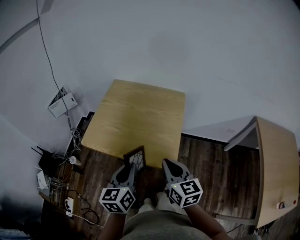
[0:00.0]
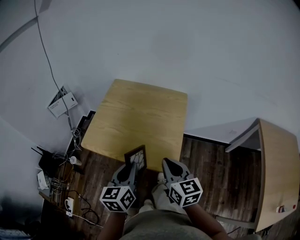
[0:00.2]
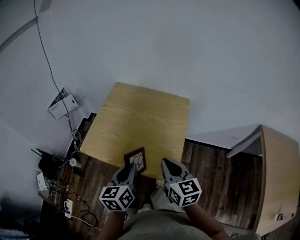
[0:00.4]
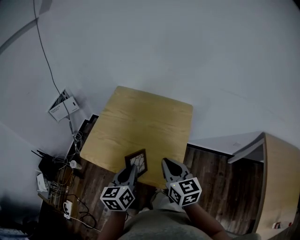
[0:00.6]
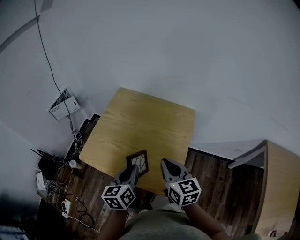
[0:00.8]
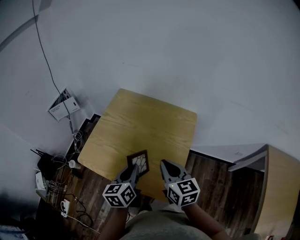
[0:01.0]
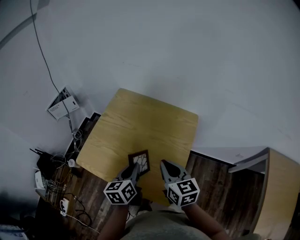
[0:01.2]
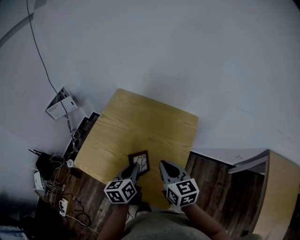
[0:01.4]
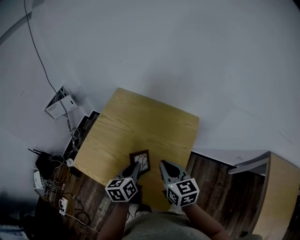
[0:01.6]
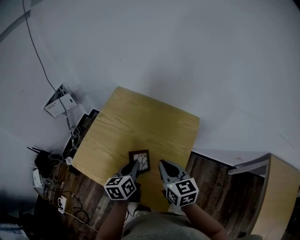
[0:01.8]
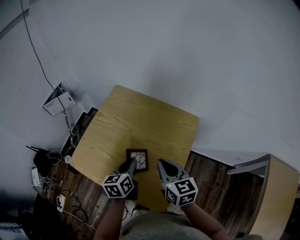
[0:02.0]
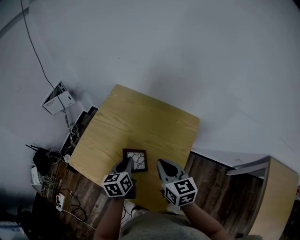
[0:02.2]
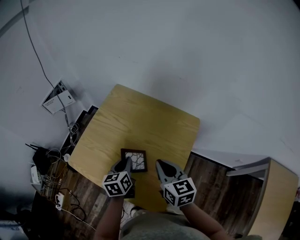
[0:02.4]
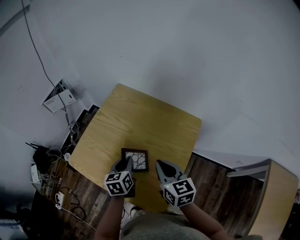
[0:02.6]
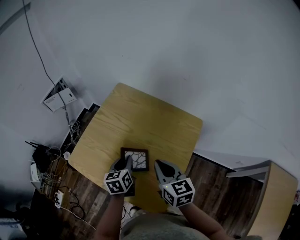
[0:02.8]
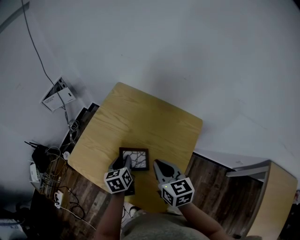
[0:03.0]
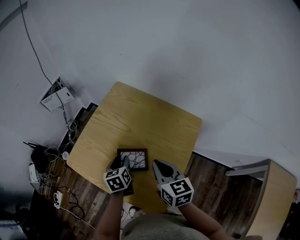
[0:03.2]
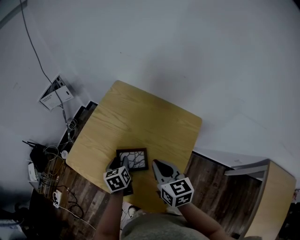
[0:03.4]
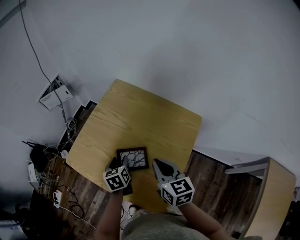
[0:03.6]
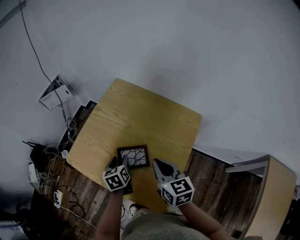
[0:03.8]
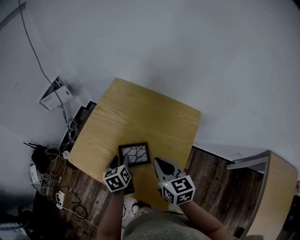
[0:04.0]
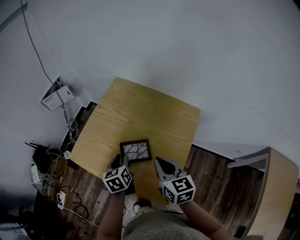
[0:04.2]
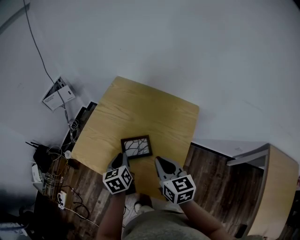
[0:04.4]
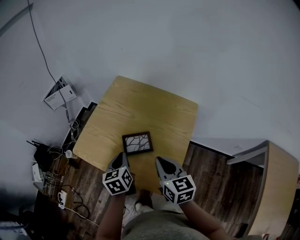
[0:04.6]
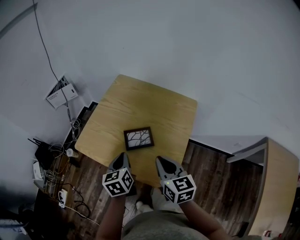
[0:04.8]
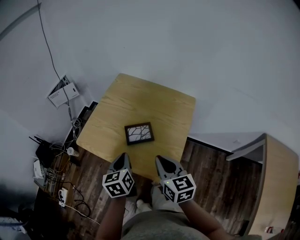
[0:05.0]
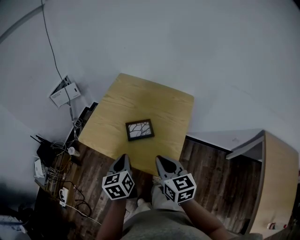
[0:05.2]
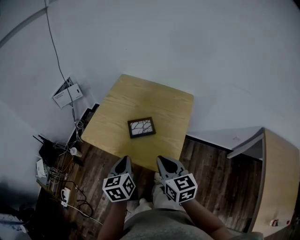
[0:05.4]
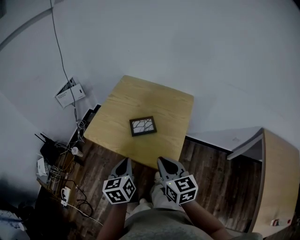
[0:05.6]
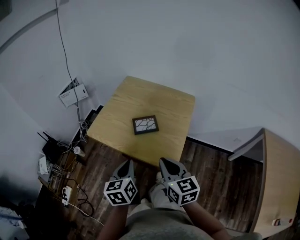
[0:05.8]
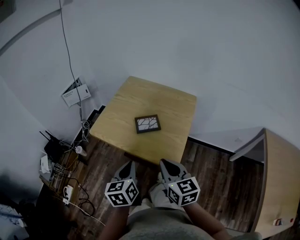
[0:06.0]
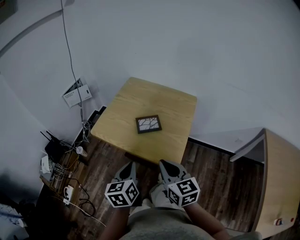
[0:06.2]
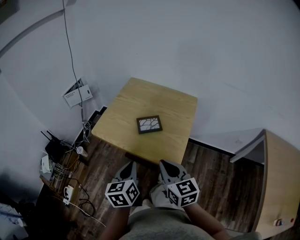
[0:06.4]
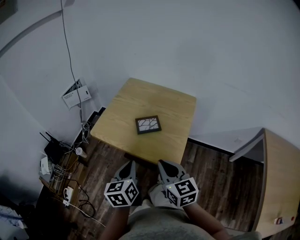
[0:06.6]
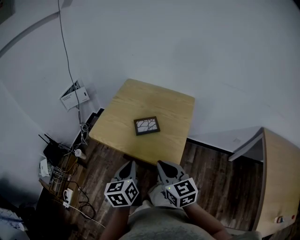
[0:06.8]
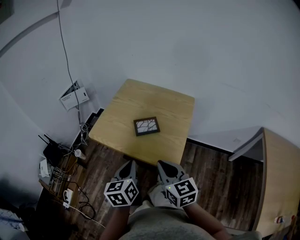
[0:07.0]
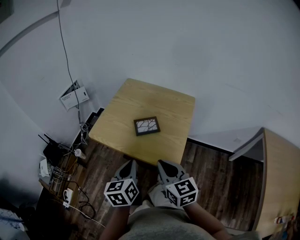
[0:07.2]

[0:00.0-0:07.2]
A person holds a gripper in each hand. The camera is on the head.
0:00.0 to 0:01.4: The left gripper moves forward and downward, some 25 cm, while the right gripper travels forward by roughly 20 cm.
0:01.4 to 0:02.8: The left gripper is displaced forward and downward by some 10 cm. Meanwhile the right gripper shifts by roughly 5 cm.
0:02.8 to 0:04.4: The left gripper shifts by about 5 cm, and opens and closes again. The right gripper goes approximately 5 cm backward.
0:04.4 to 0:05.8: The left gripper is displaced backward and upward by some 25 cm. Meanwhile the right gripper heads backward, covering roughly 20 cm.
0:05.8 to 0:07.2: The grippers stay close to where they were, moving slightly.

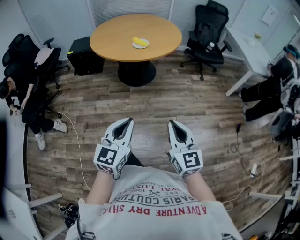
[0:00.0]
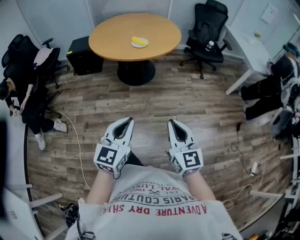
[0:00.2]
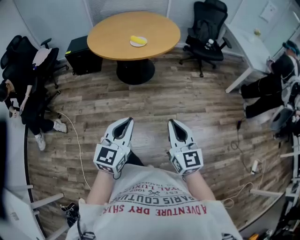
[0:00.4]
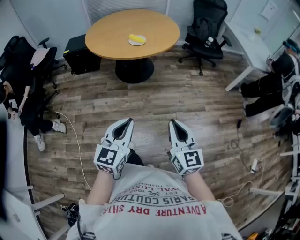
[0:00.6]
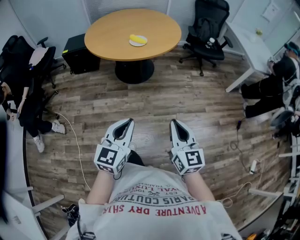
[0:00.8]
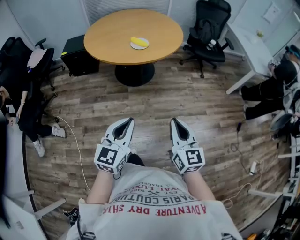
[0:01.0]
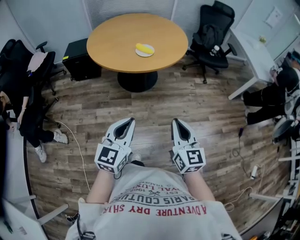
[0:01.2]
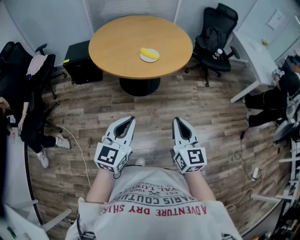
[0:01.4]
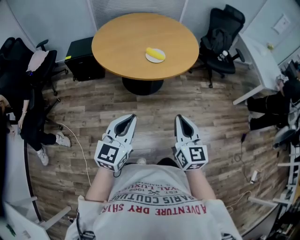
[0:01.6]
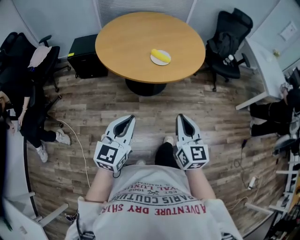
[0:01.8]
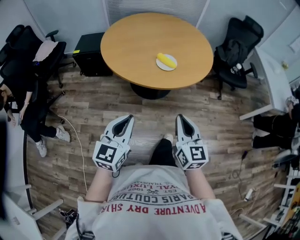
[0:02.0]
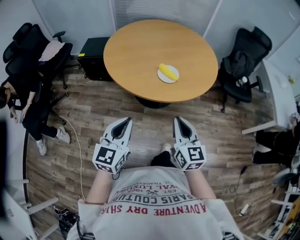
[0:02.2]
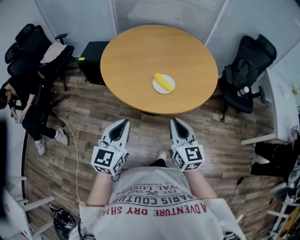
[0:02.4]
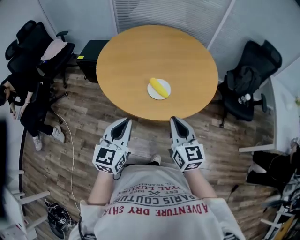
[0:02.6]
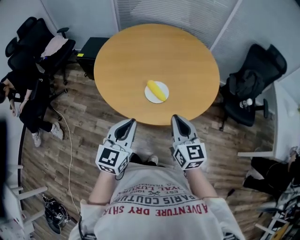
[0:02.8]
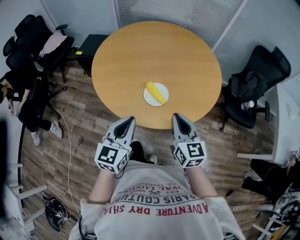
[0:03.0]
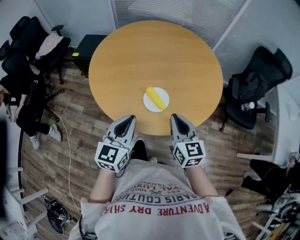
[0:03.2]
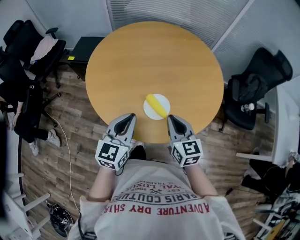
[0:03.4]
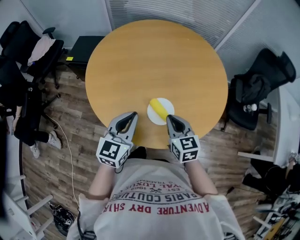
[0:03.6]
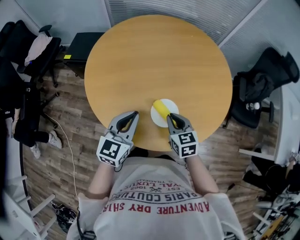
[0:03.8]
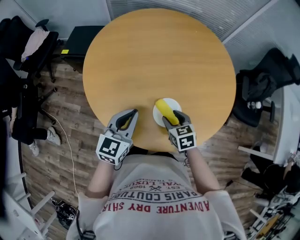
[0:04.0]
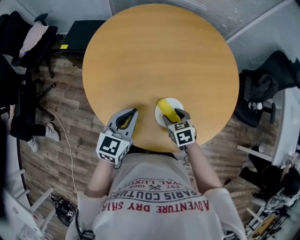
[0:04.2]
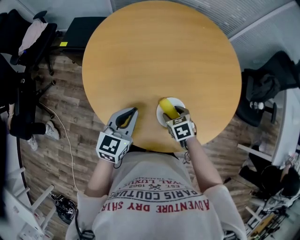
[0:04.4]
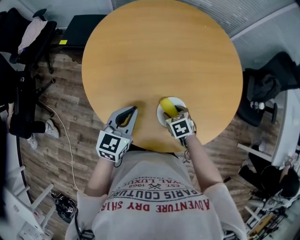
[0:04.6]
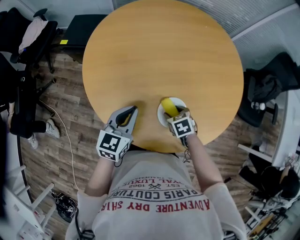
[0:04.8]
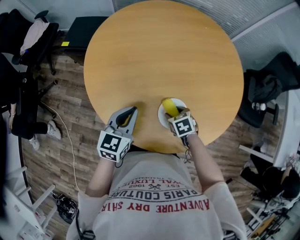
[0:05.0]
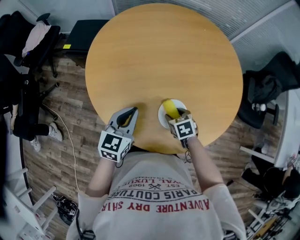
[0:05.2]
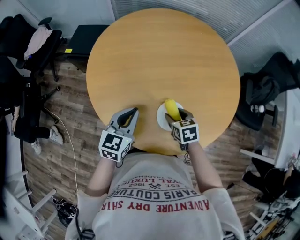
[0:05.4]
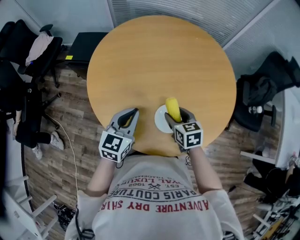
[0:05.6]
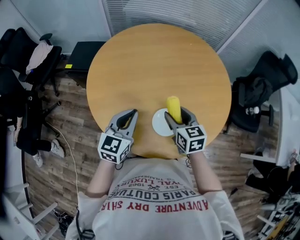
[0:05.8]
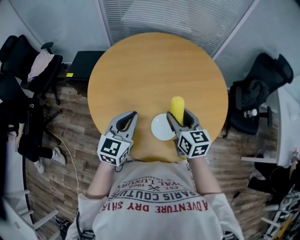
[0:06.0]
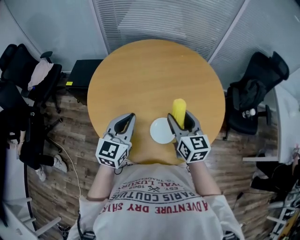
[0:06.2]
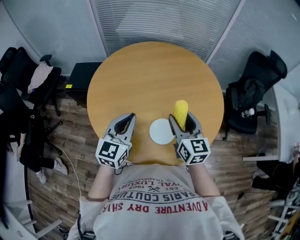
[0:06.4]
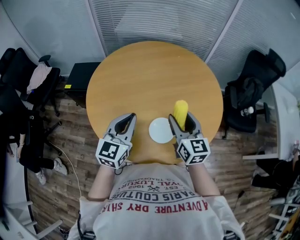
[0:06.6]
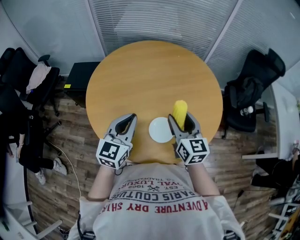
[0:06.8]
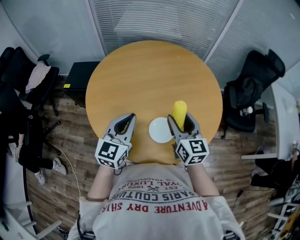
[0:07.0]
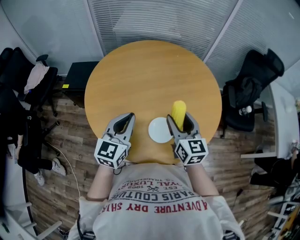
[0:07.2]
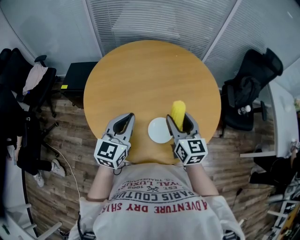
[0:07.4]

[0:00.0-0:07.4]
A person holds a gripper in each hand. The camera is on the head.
0:00.0 to 0:01.4: Both grippers move forward and to the left, some 25 cm.
0:01.4 to 0:03.0: Both grippers move forward, about 40 cm. The left gripper rotates some 30 degrees. Meanwhile the right gripper rotates roughly 30 degrees.
0:03.0 to 0:04.4: The right gripper heads downward and forward, covering about 30 cm, angles its fingers downward, by some 50 degrees, and opens up. The left gripper heads forward and downward, covering about 25 cm.
0:04.4 to 0:06.0: The left gripper goes some 10 cm upward, while the right gripper moves upward, about 20 cm, and tilts its fingers about 40 degrees upward.
0:06.0 to 0:07.4: The grippers stay close to where they were, moving slightly.

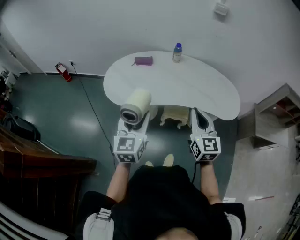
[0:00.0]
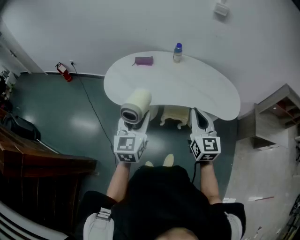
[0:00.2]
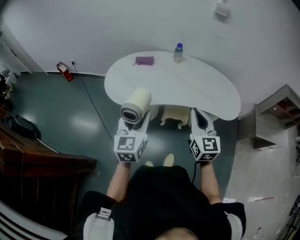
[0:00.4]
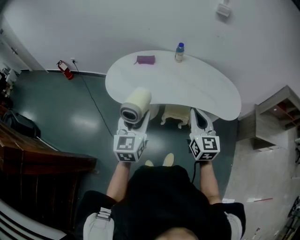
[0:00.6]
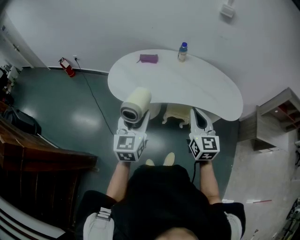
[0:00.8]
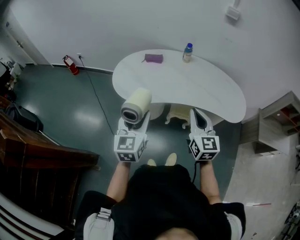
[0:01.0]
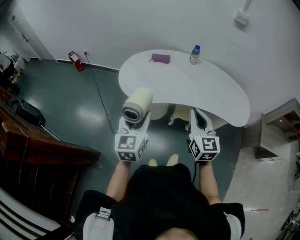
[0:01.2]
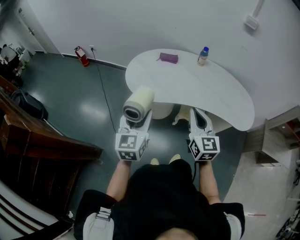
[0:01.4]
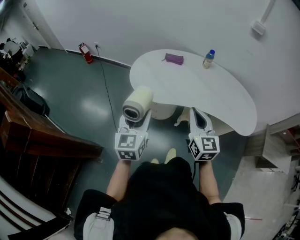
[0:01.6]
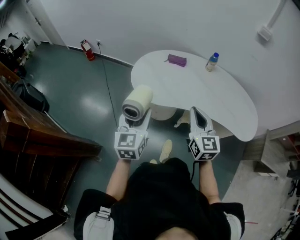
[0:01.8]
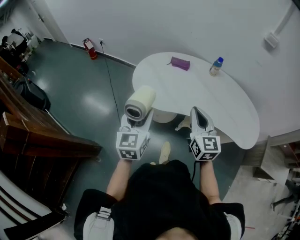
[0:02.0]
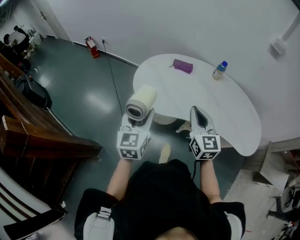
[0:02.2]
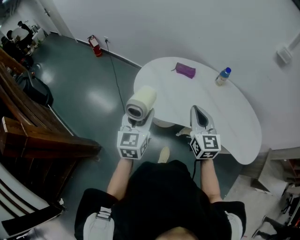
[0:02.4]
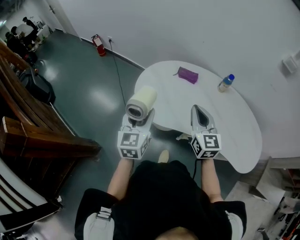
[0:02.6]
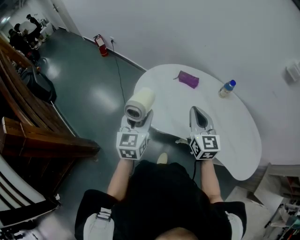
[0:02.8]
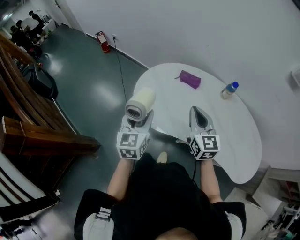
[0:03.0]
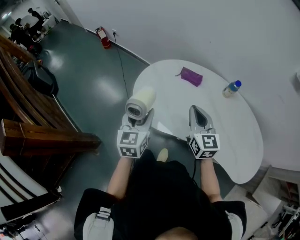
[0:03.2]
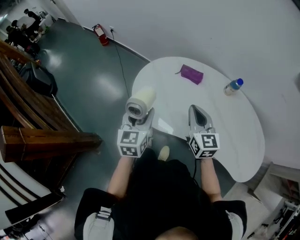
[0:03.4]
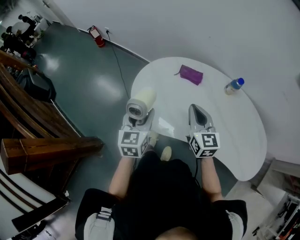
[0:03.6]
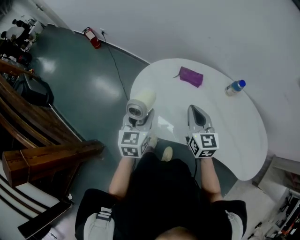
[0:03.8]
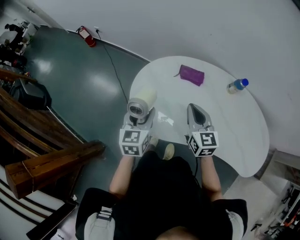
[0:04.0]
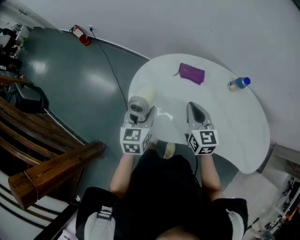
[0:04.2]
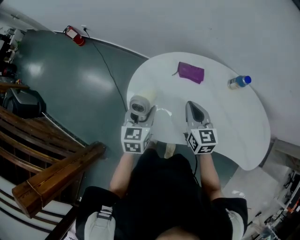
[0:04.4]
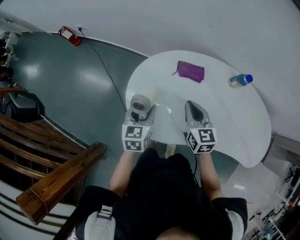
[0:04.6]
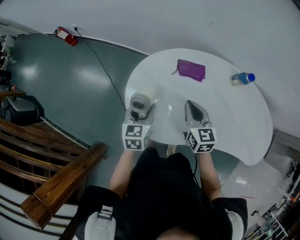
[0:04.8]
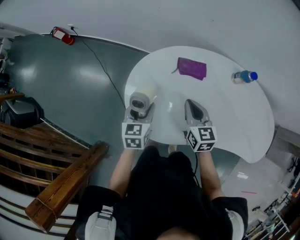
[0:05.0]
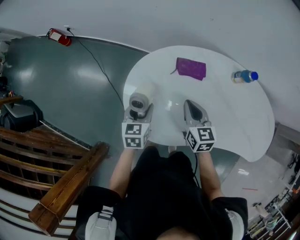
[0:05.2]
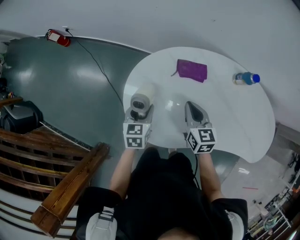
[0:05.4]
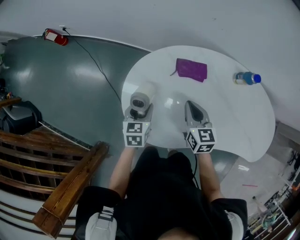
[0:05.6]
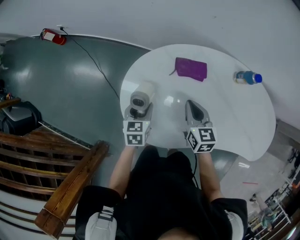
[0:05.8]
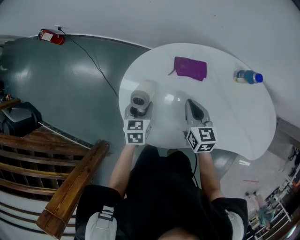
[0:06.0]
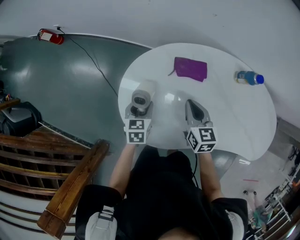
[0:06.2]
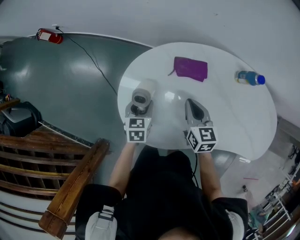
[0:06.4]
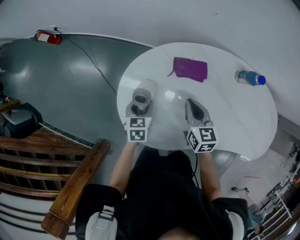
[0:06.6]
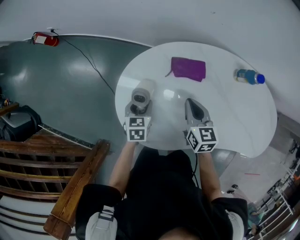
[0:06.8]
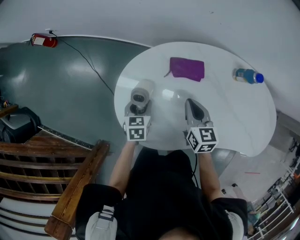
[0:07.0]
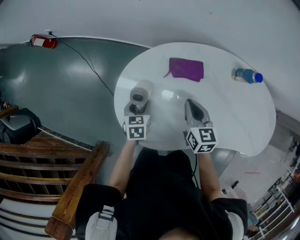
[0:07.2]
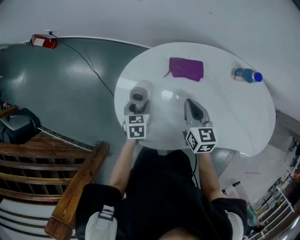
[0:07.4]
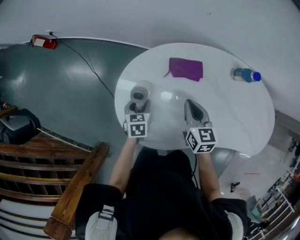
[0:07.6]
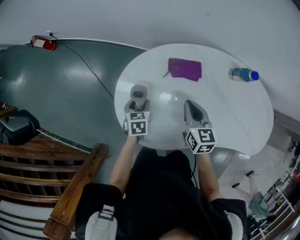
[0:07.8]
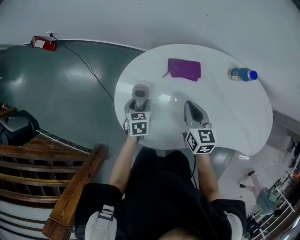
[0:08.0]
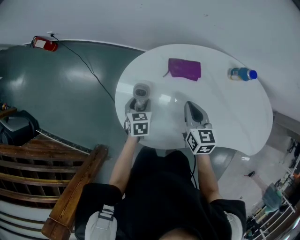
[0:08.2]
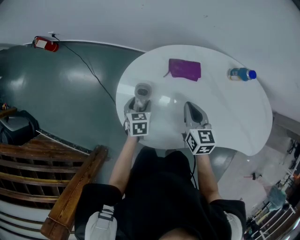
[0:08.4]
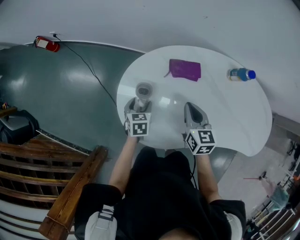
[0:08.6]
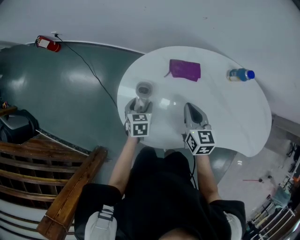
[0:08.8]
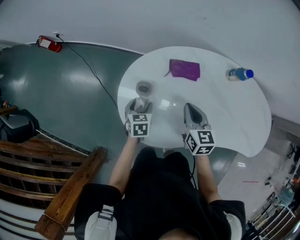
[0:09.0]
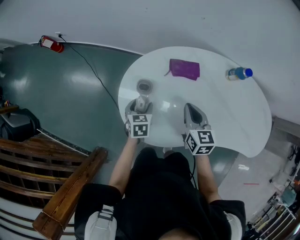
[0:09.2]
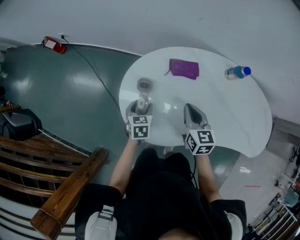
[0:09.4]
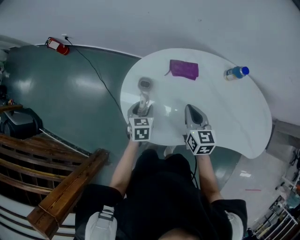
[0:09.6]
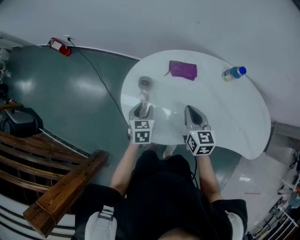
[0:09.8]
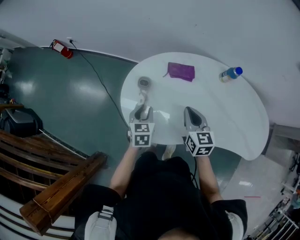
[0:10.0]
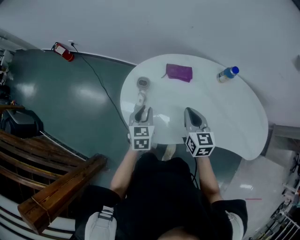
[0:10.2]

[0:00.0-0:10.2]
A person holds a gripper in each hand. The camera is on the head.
0:00.0 to 0:01.4: Both grippers travel together to the left, approximately 10 cm.
0:01.4 to 0:03.0: Both grippers move forward, some 25 cm.
0:03.0 to 0:04.4: Both grippers move forward and downward, some 20 cm. The left gripper changes its angle by roughly 20 degrees.
0:04.4 to 0:05.8: The two grippers go some 15 cm downward and forward.
0:05.8 to 0:07.2: The left gripper travels downward by approximately 5 cm.
0:07.2 to 0:08.8: The right gripper changes place by some 5 cm.
0:08.8 to 0:10.2: The right gripper goes about 10 cm backward and upward. Meanwhile the left gripper heads upward and backward, covering approximately 15 cm, and closes its fingers.
